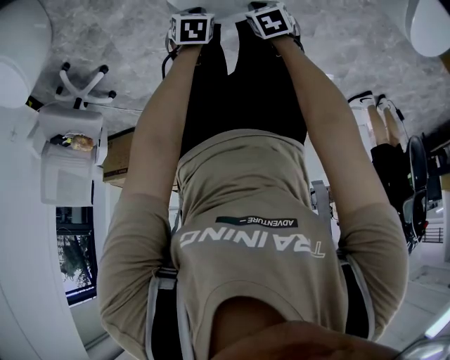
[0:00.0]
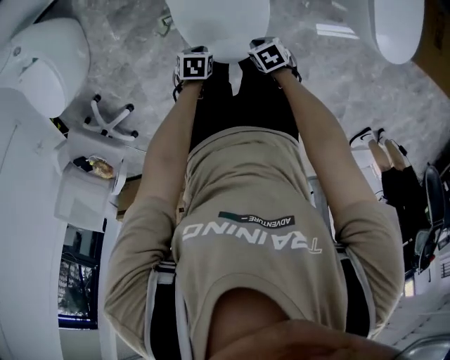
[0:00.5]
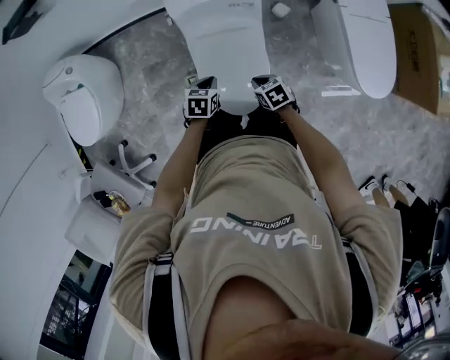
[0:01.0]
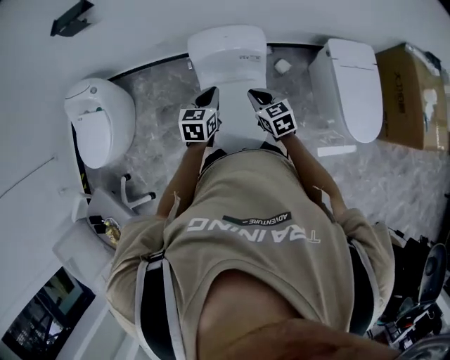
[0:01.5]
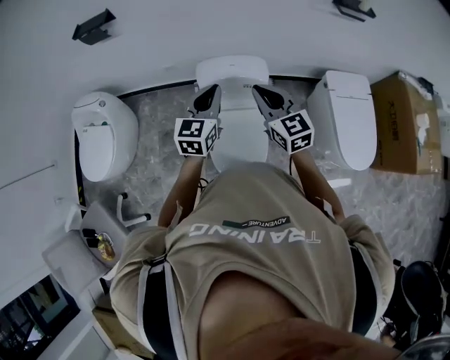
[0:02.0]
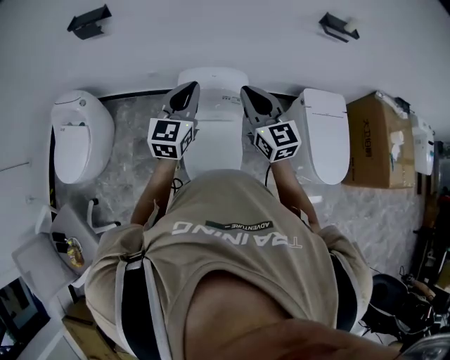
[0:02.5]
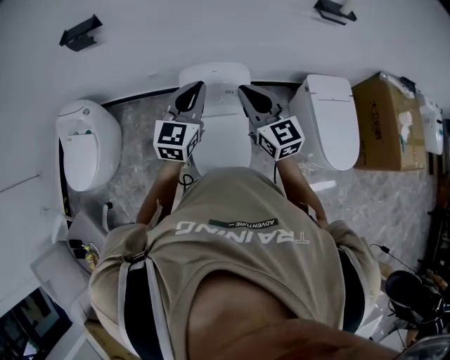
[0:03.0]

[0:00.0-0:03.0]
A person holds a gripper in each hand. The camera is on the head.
0:00.0 to 0:01.5: The two grippers go about 40 cm upward. The left gripper angles its fingers upward, by some 40 degrees. The right gripper tips its fingers upward by about 30 degrees.
0:01.5 to 0:03.0: The grippers both shift upward by approximately 25 cm. The left gripper turns by some 30 degrees. The right gripper angles its fingers upward, by about 30 degrees.

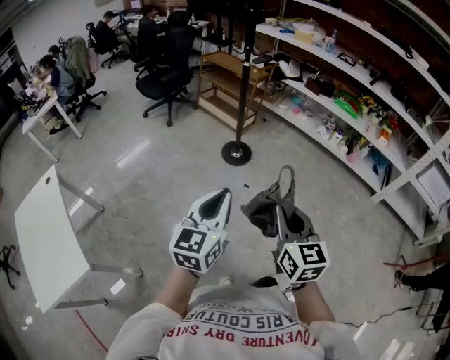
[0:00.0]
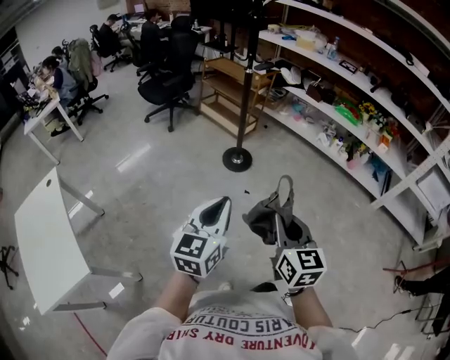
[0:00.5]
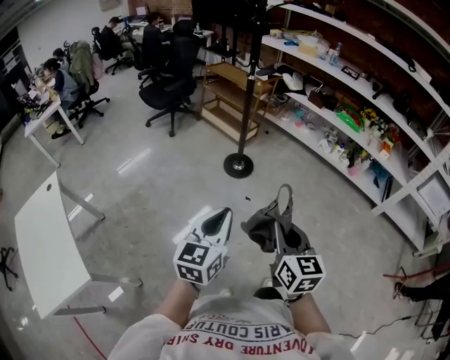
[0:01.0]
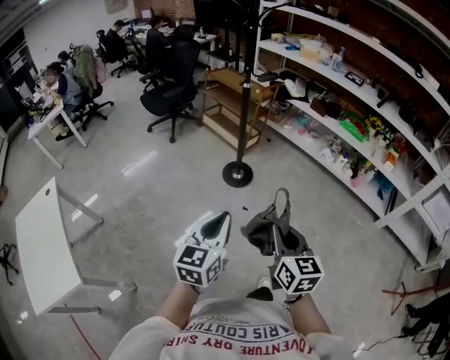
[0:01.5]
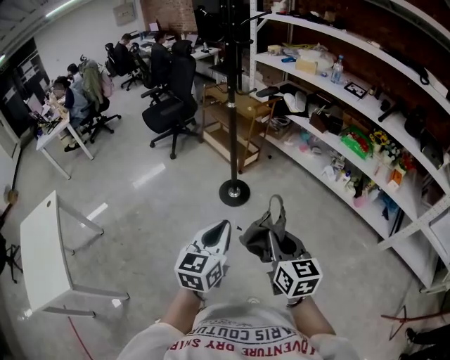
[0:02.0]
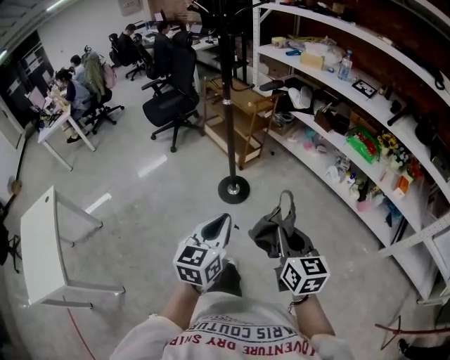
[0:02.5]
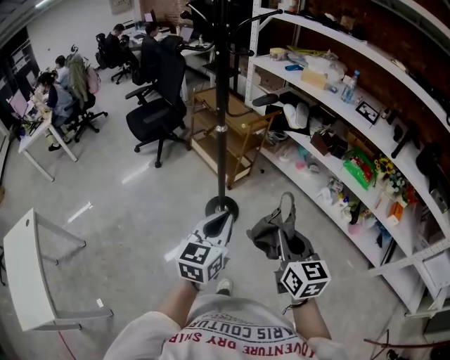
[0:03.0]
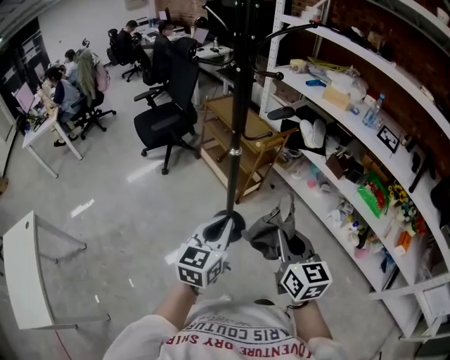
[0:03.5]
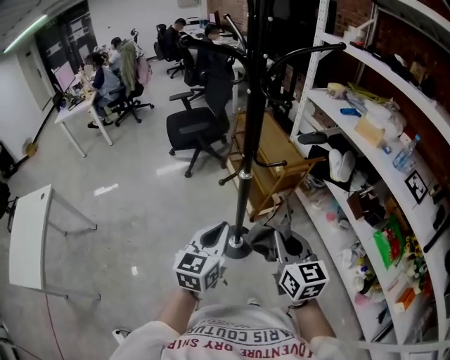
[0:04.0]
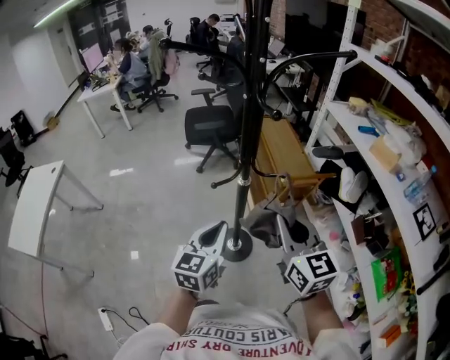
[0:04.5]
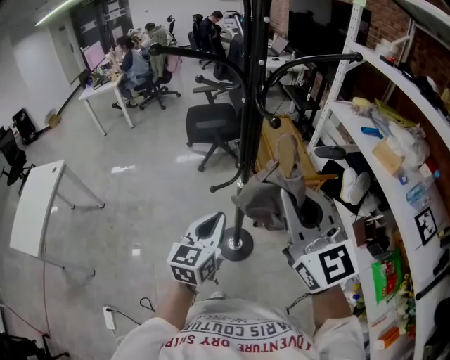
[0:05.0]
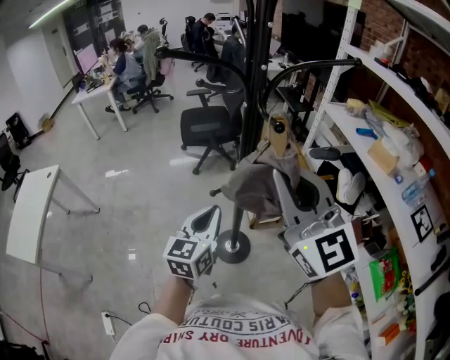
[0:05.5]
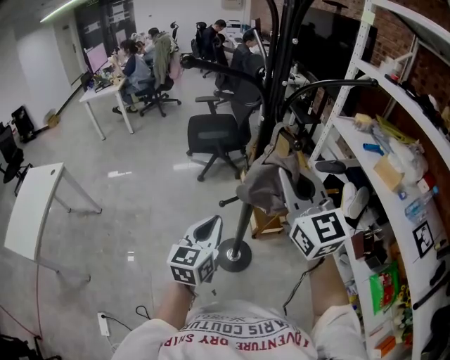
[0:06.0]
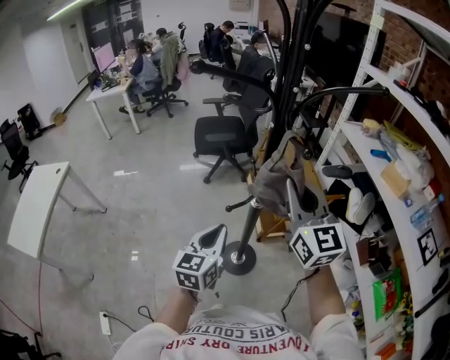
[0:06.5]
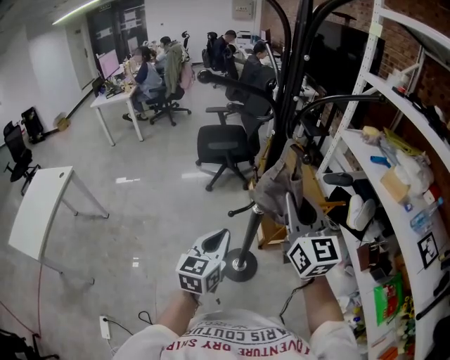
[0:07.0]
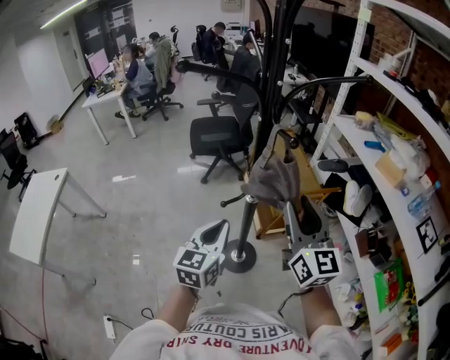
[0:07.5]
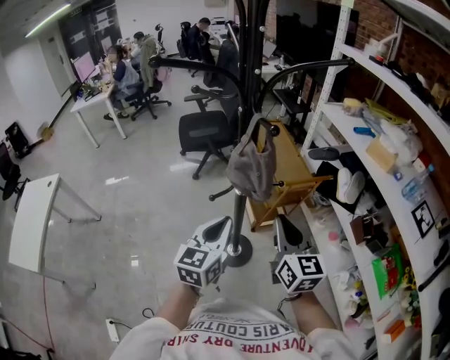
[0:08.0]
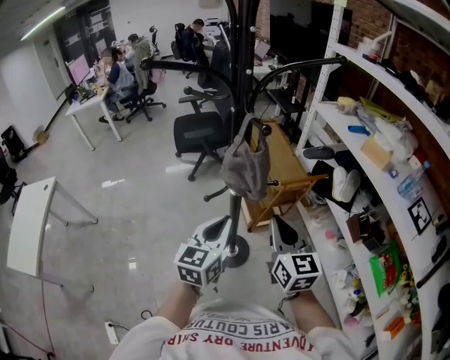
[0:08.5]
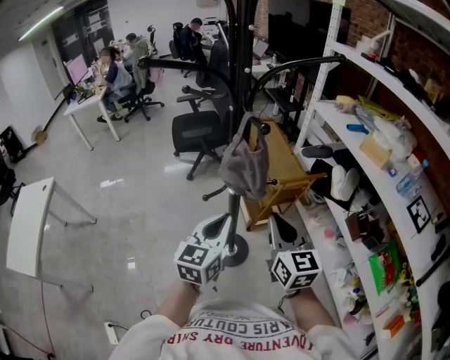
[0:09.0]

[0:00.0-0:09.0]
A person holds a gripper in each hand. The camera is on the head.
0:00.0 to 0:02.0: The right gripper travels forward and to the right by about 30 cm. The left gripper goes approximately 30 cm to the right and forward.
0:02.0 to 0:04.5: The two grippers travel together, some 60 cm. The right gripper changes its angle by approximately 40 degrees; the left gripper rotates about 30 degrees.
0:04.5 to 0:07.0: The left gripper shifts some 10 cm forward and to the left; the right gripper goes approximately 15 cm forward and upward.
0:07.0 to 0:09.0: The right gripper shifts some 15 cm downward, backward and to the right, and opens, then closes again. Meanwhile the left gripper travels to the right by roughly 10 cm.

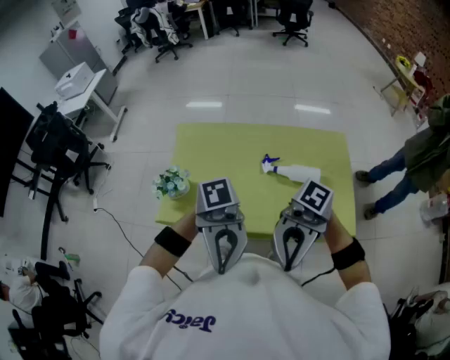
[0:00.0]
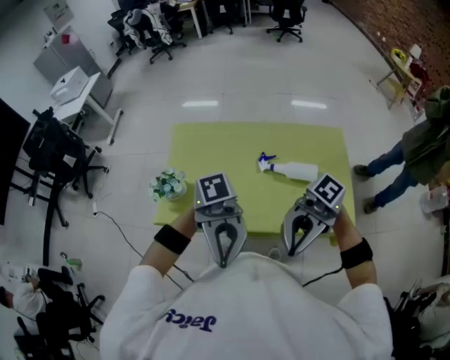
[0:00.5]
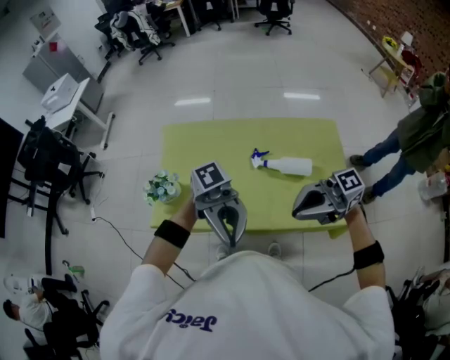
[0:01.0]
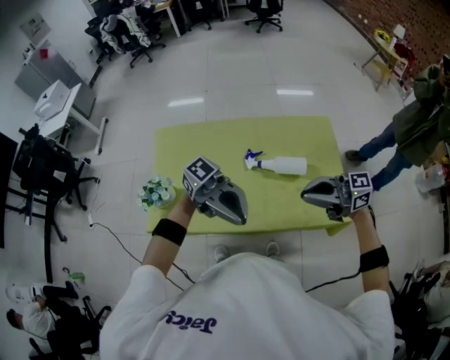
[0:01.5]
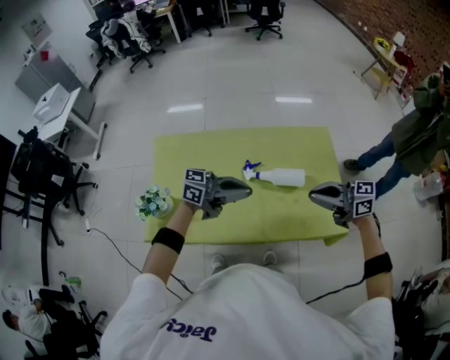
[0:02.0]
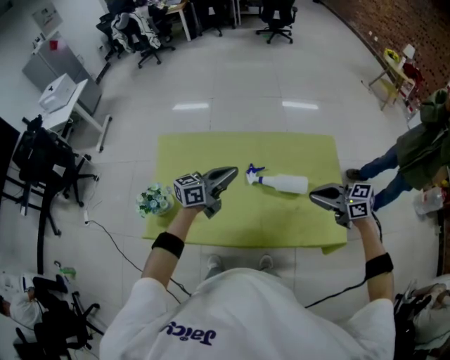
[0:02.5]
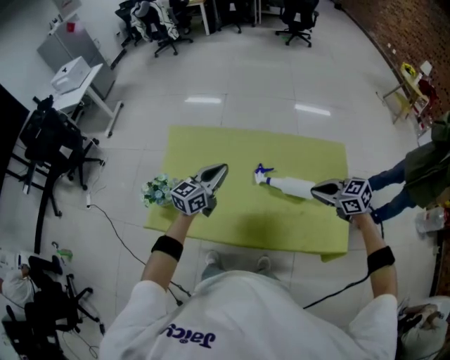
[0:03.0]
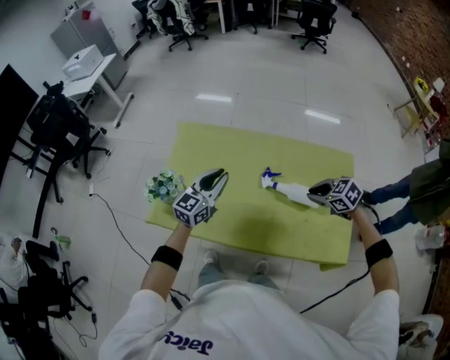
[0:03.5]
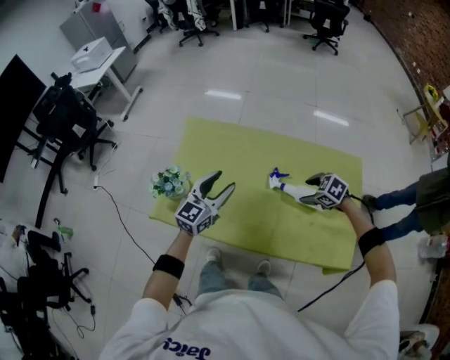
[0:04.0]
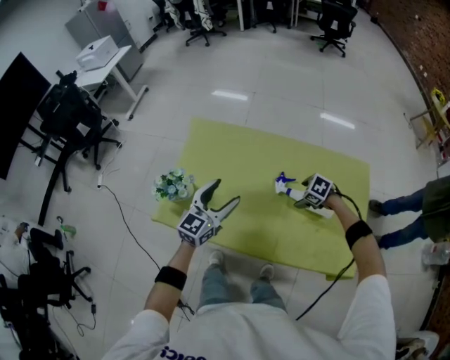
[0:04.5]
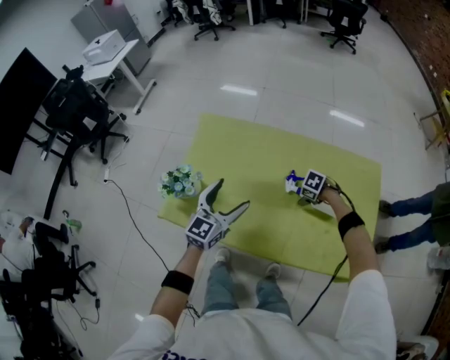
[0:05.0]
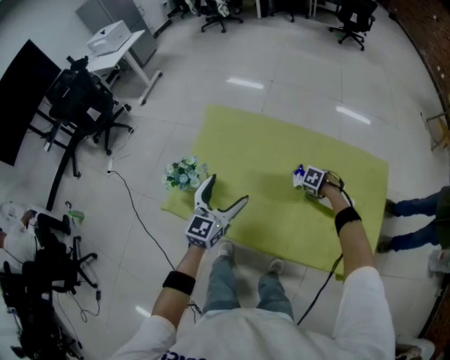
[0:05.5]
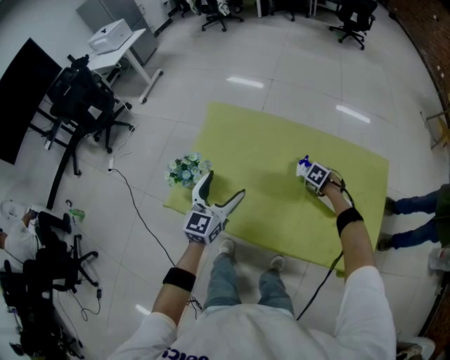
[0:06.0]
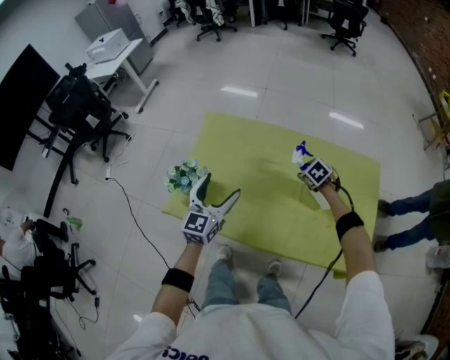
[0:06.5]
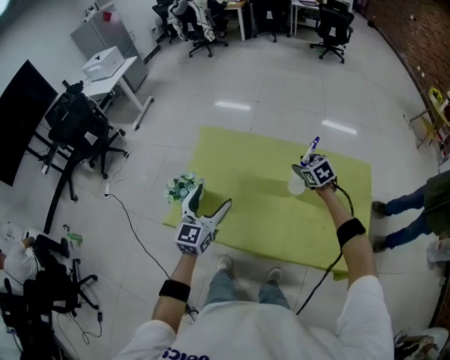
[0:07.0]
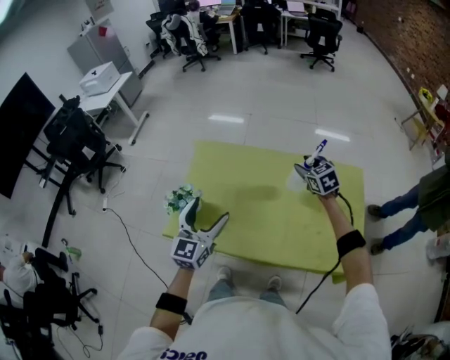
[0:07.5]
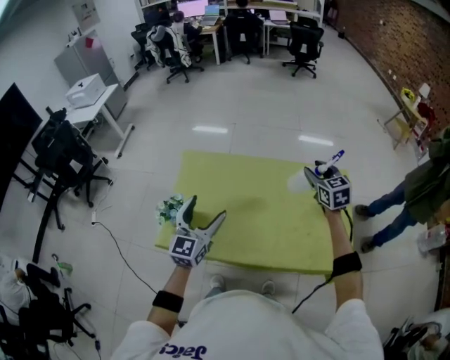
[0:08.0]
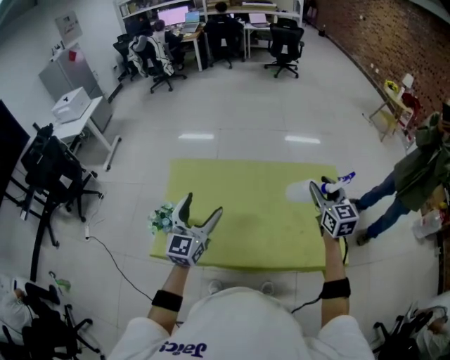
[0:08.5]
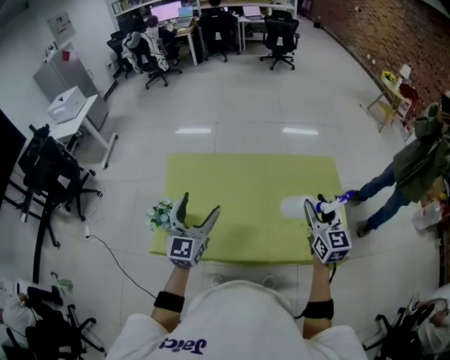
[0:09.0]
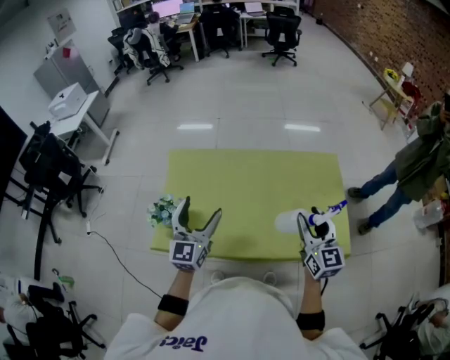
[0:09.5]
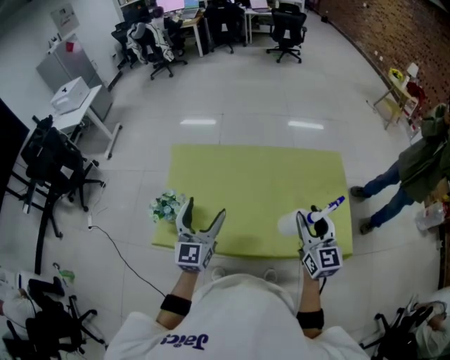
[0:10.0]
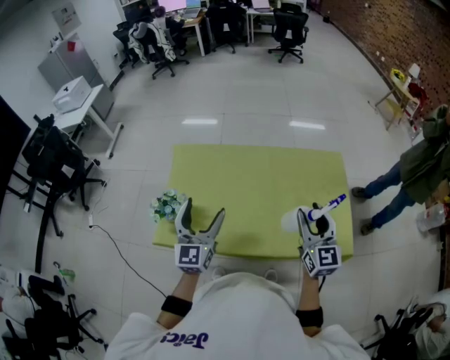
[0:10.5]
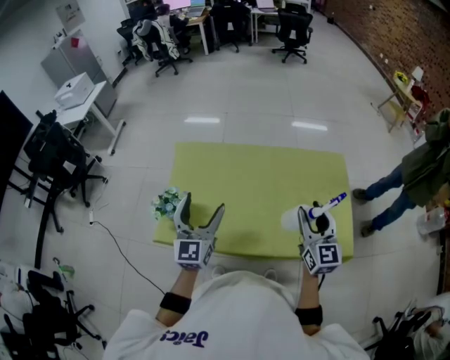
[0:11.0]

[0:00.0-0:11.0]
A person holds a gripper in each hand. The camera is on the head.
0:00.0 to 0:02.0: The right gripper shifts by approximately 30 cm, and rotates some 90 degrees, while the left gripper ends up about 35 cm from where it was, and swivels roughly 70 degrees.
0:02.0 to 0:03.5: The left gripper ends up about 15 cm from where it was, and rotates some 70 degrees. The right gripper moves downward, some 15 cm, and points its fingers approximately 50 degrees further downward.
0:03.5 to 0:05.5: The left gripper changes place by roughly 10 cm, and opens. Meanwhile the right gripper heads downward, covering roughly 25 cm, tips its fingers downward by about 30 degrees, and opens up.
0:05.5 to 0:07.5: The right gripper is displaced upward by some 30 cm, and tilts its fingers approximately 50 degrees upward. Meanwhile the left gripper heads upward, covering about 10 cm.
0:07.5 to 0:09.0: The left gripper changes place by about 5 cm. The right gripper heads backward, to the right and upward, covering approximately 25 cm, and turns by about 40 degrees.
0:09.0 to 0:11.0: The right gripper moves about 5 cm.

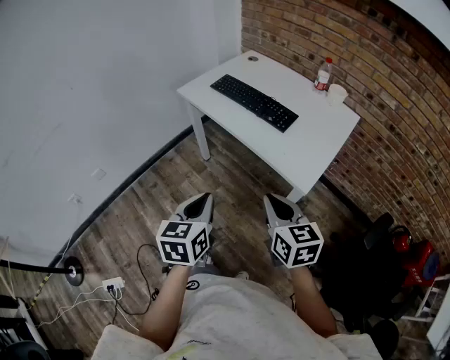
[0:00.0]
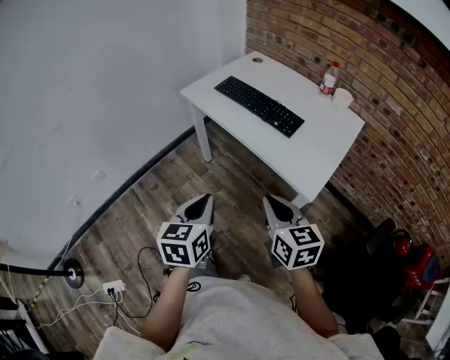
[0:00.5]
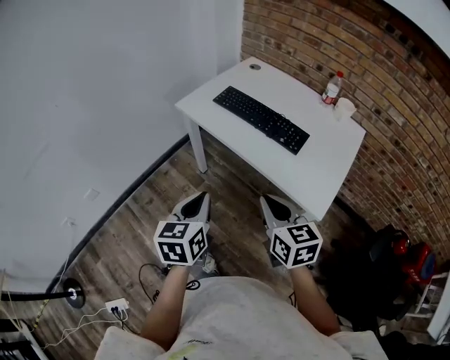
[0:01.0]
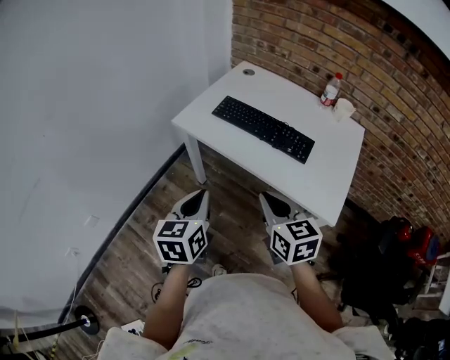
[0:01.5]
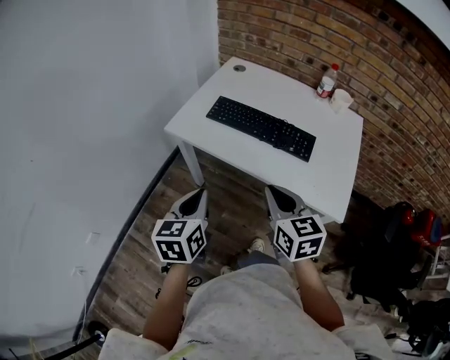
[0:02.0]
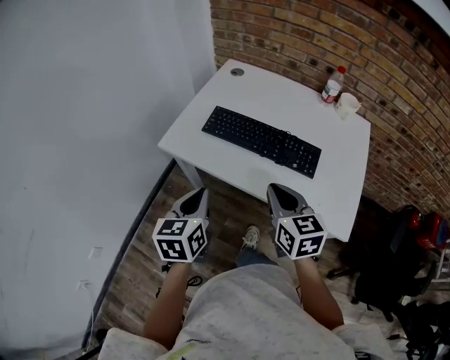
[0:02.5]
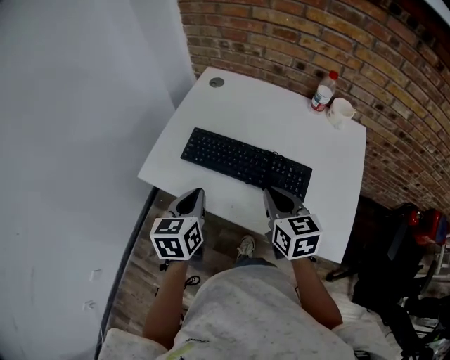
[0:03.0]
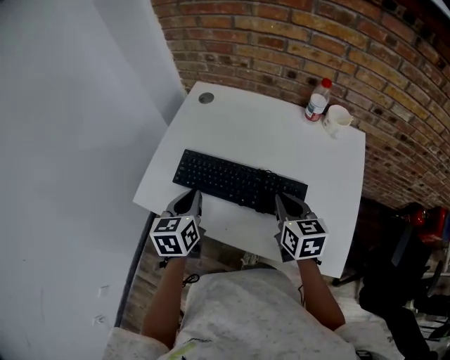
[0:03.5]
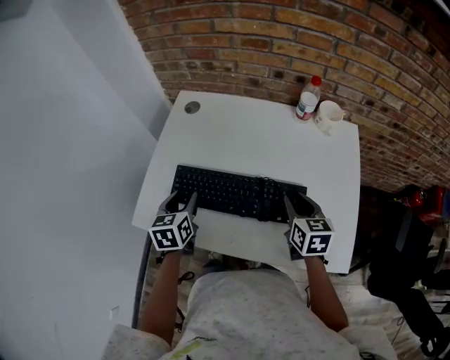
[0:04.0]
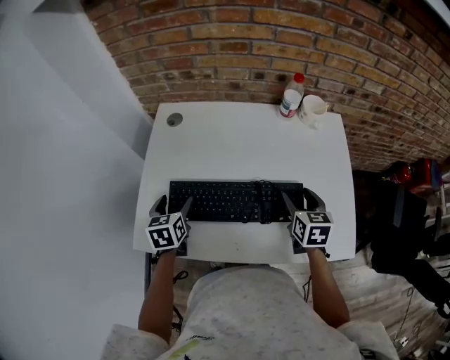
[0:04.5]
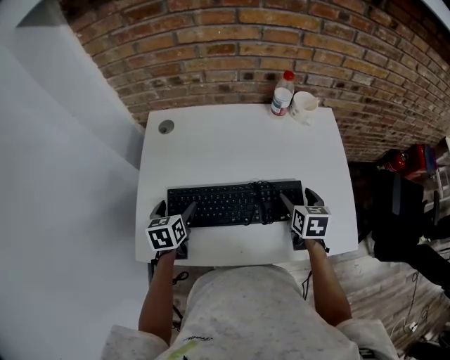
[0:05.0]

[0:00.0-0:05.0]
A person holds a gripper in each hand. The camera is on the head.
0:00.0 to 0:02.5: Both grippers move forward, some 35 cm.
0:02.5 to 0:05.0: The left gripper ends up roughly 35 cm from where it was, rotates approximately 20 degrees, and opens up. Meanwhile the right gripper shifts by approximately 30 cm, changes its angle by about 40 degrees, and opens.
